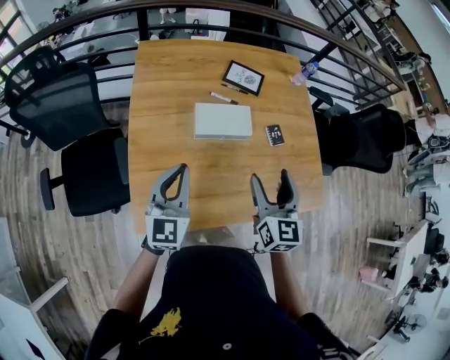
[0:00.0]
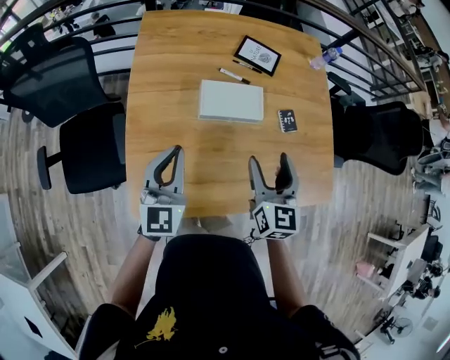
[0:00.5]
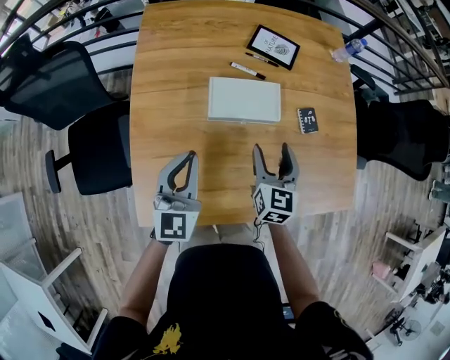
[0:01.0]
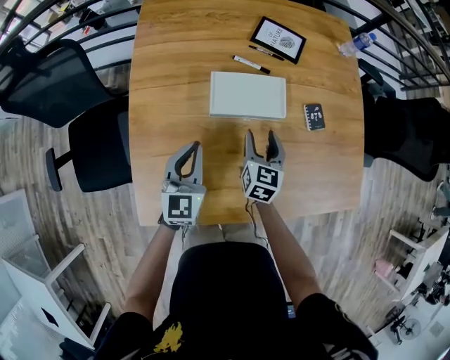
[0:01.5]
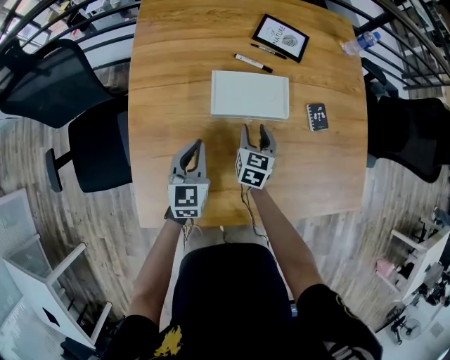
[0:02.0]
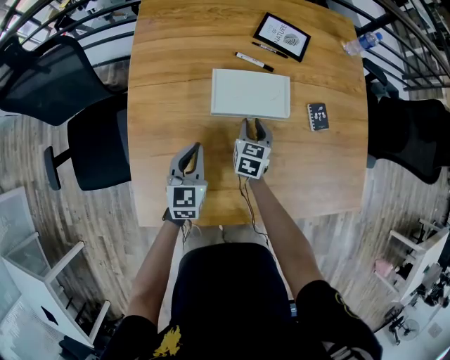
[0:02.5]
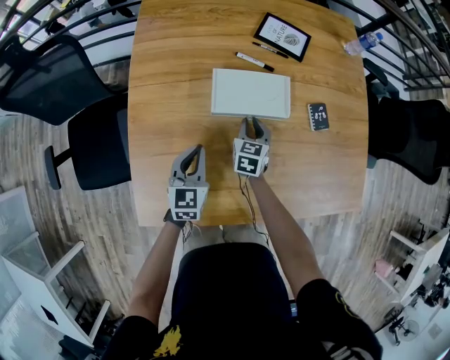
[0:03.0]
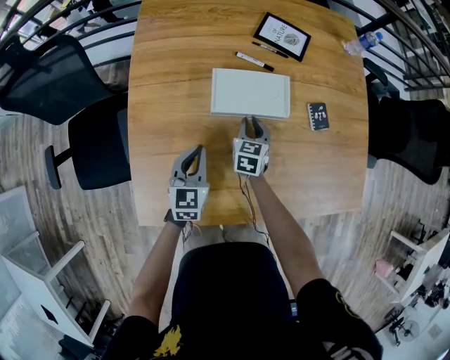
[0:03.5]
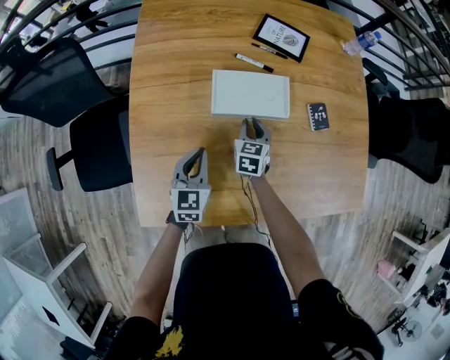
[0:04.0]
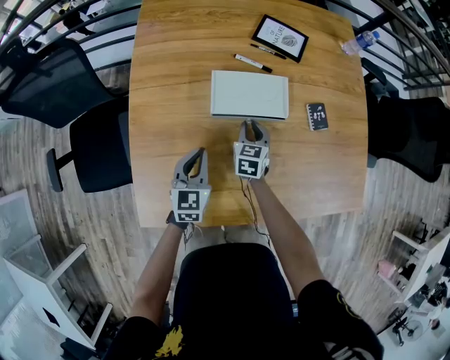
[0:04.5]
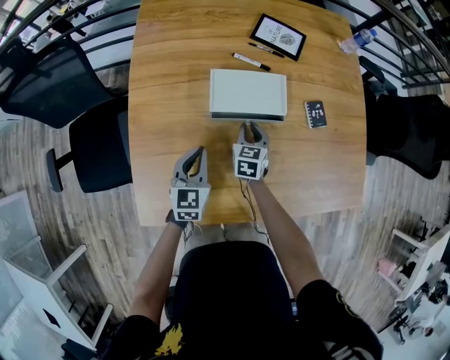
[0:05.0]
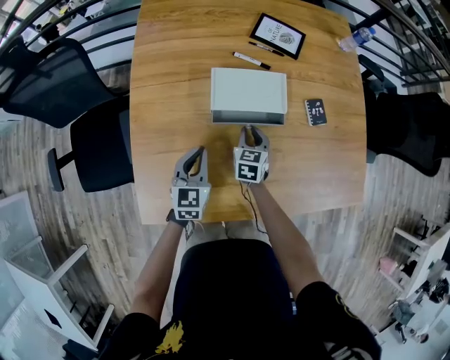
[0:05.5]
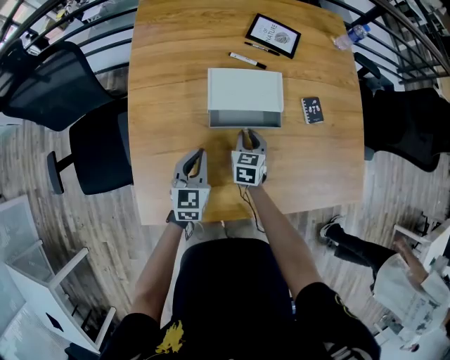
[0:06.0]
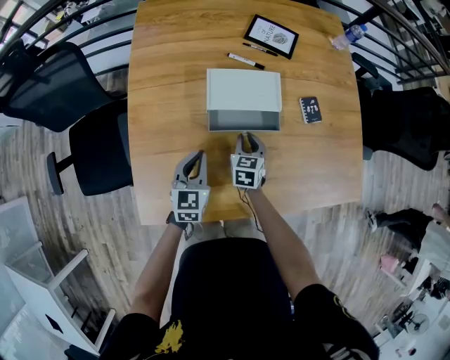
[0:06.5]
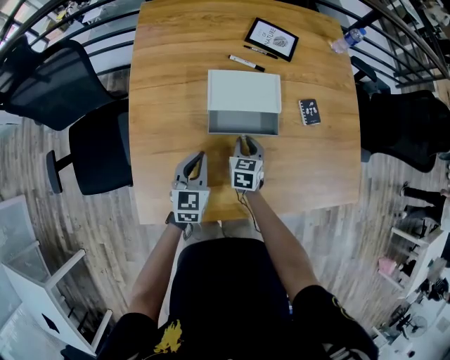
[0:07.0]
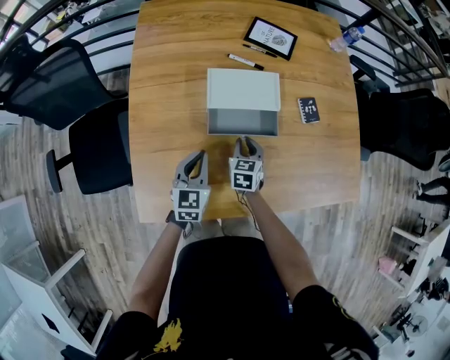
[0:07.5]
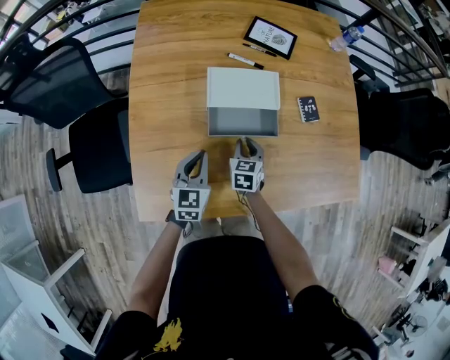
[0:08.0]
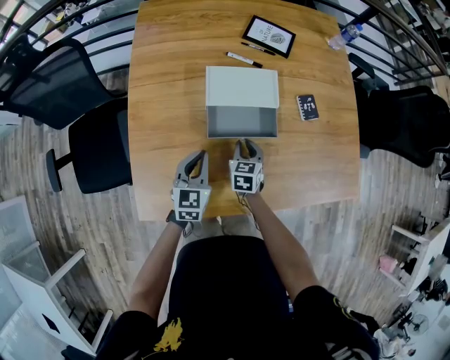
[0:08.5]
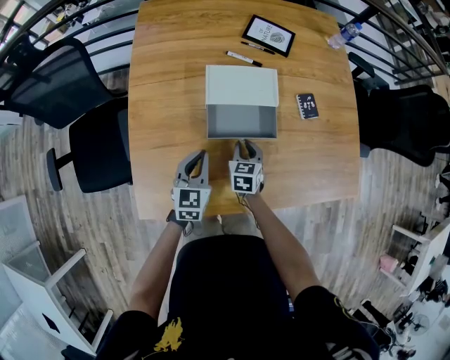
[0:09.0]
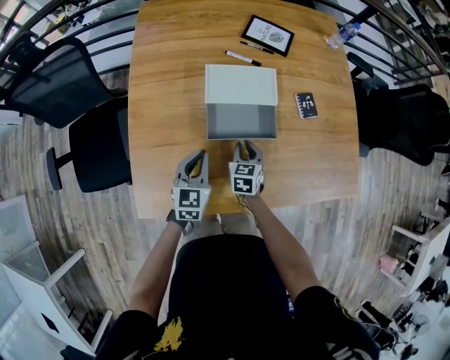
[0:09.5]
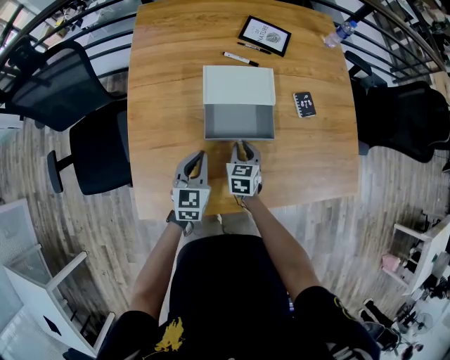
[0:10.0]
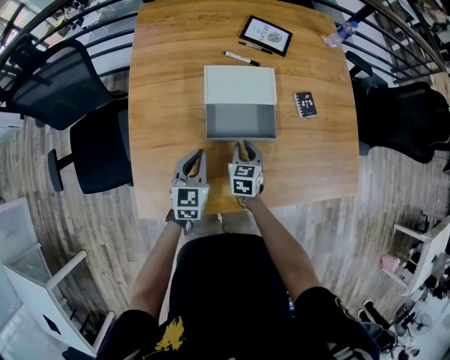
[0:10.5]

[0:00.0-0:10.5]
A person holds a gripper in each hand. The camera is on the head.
0:00.0 to 0:02.0: The grippers both shift downward and forward by roughly 30 cm. The right gripper turns by roughly 20 degrees, and closes.
0:02.0 to 0:04.0: The grippers move only a little.
0:04.0 to 0:06.5: The right gripper heads backward, covering roughly 5 cm.
0:06.5 to 0:10.5: The grippers make only small movements.

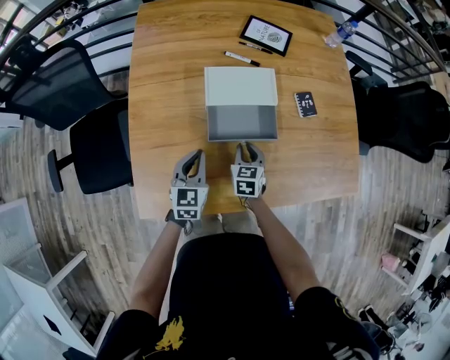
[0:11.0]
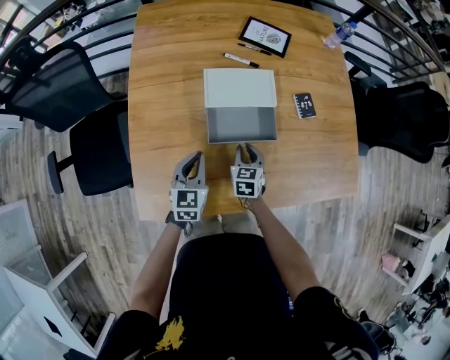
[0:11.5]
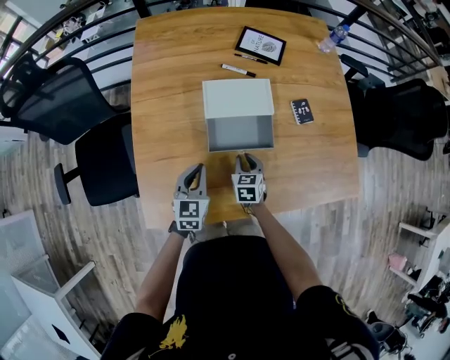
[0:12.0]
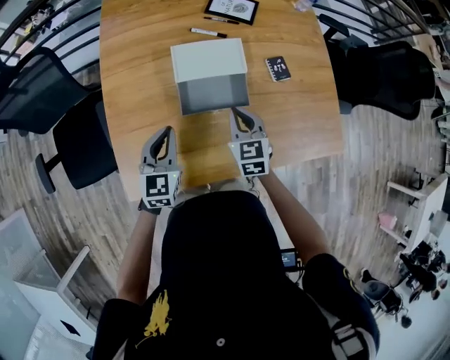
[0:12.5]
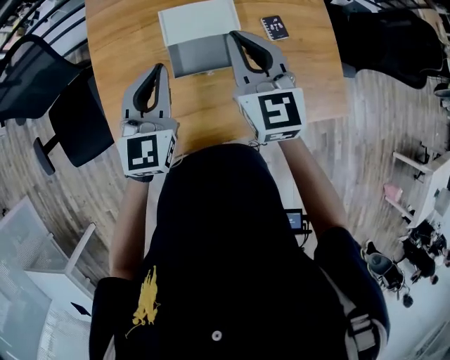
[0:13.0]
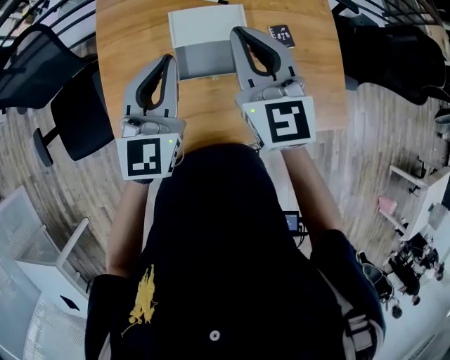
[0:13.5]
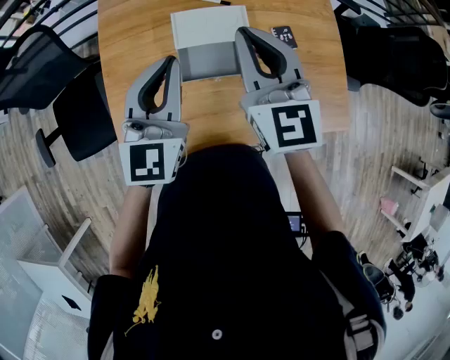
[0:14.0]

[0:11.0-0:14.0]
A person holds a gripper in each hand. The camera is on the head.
0:11.0 to 0:12.5: The right gripper shifts roughly 15 cm upward, while the left gripper shifts some 10 cm upward.
0:12.5 to 0:14.0: Both grippers move upward, approximately 20 cm. The left gripper rotates approximately 20 degrees. The right gripper rotates about 30 degrees.

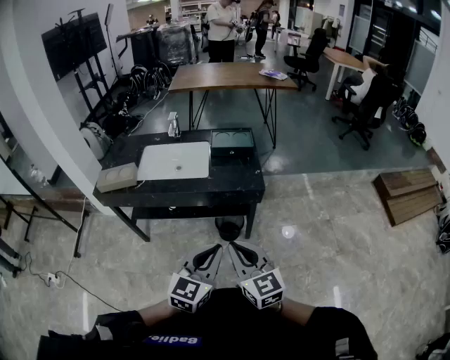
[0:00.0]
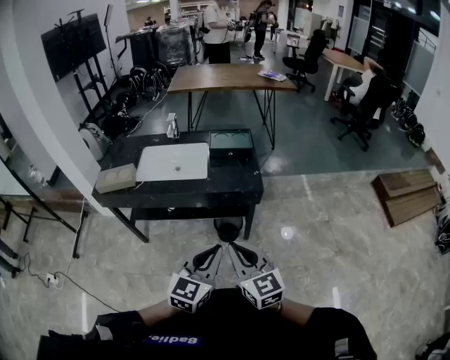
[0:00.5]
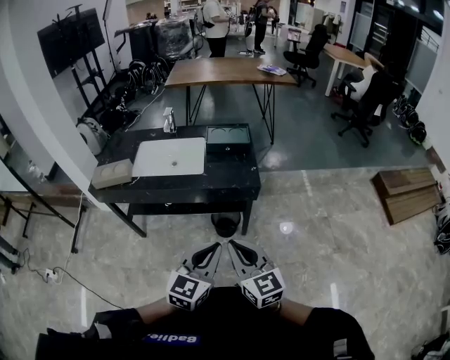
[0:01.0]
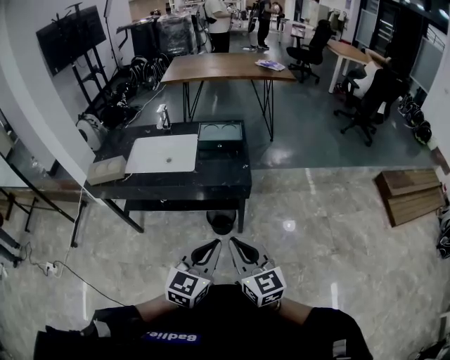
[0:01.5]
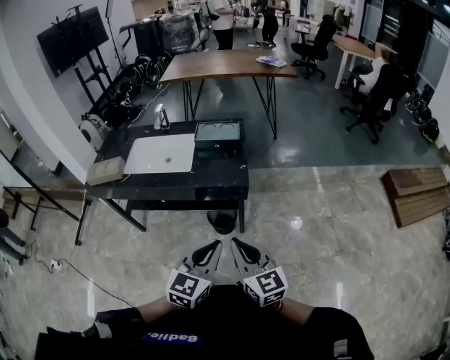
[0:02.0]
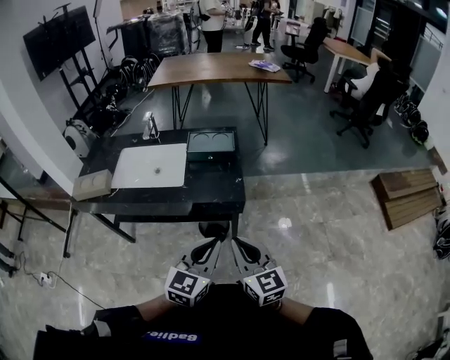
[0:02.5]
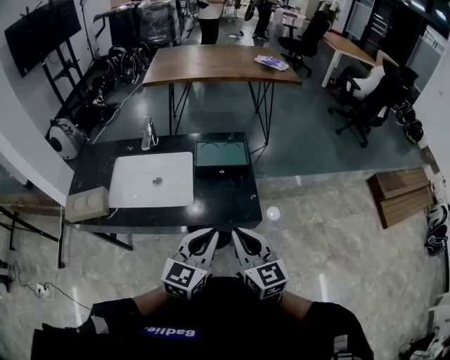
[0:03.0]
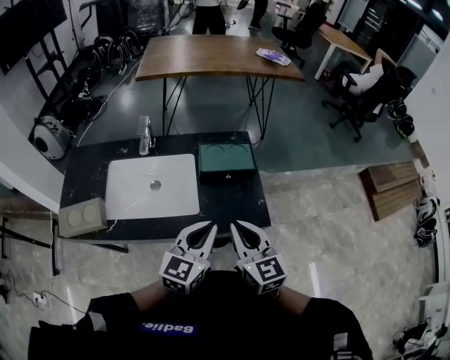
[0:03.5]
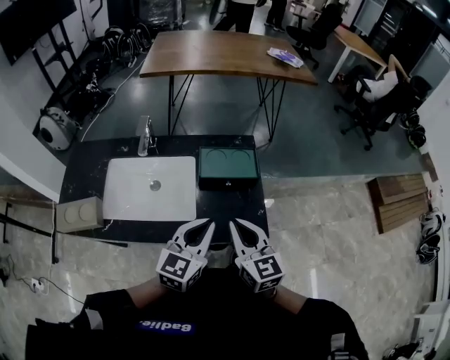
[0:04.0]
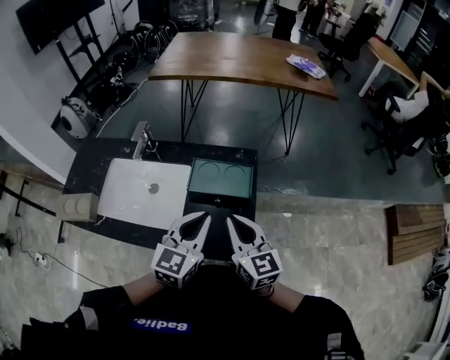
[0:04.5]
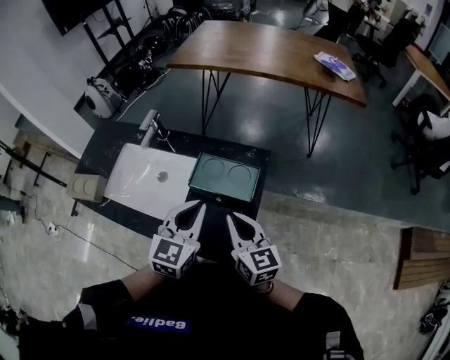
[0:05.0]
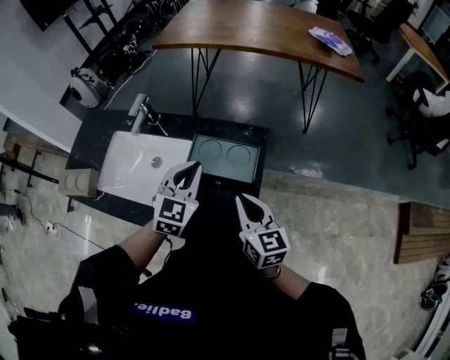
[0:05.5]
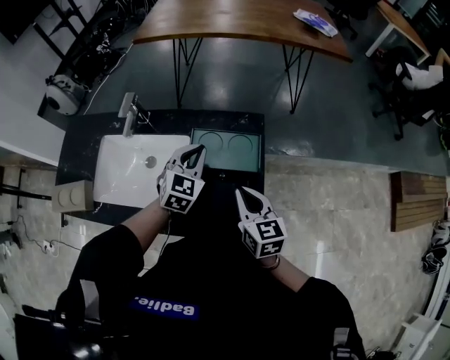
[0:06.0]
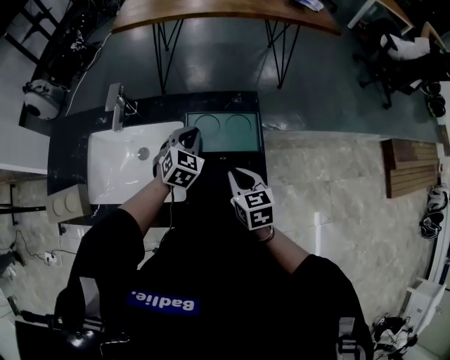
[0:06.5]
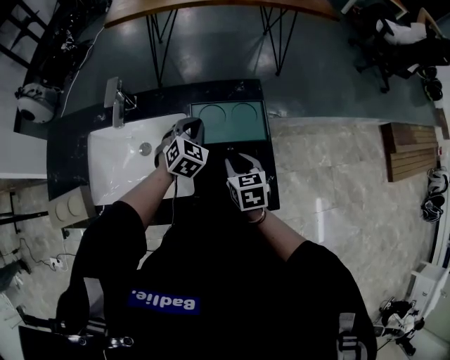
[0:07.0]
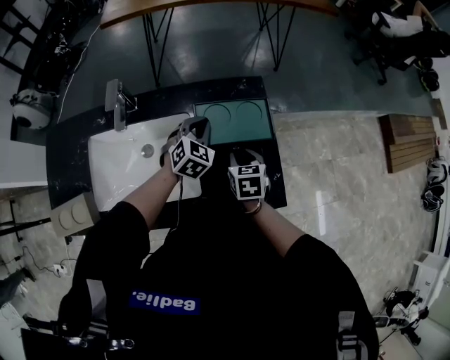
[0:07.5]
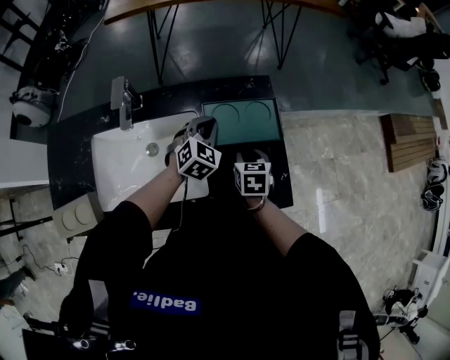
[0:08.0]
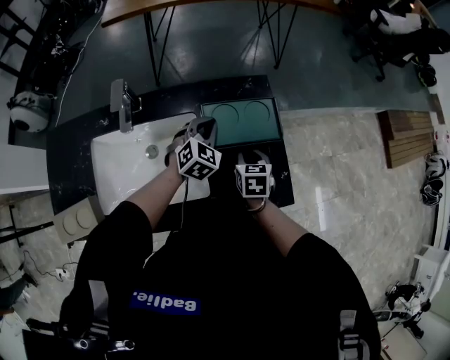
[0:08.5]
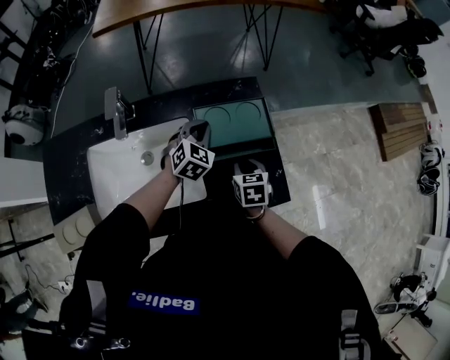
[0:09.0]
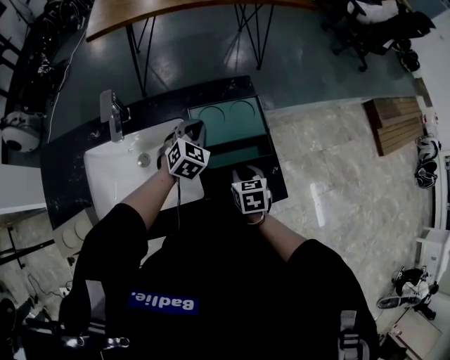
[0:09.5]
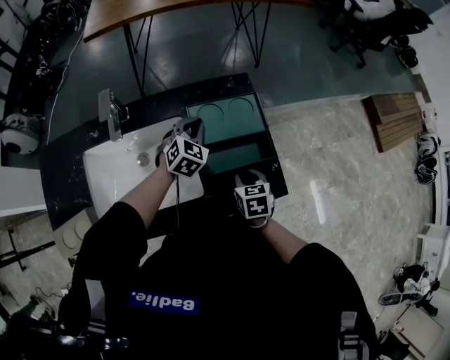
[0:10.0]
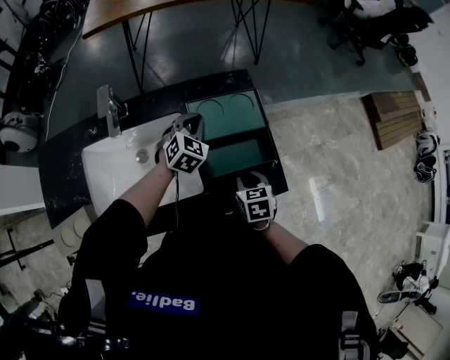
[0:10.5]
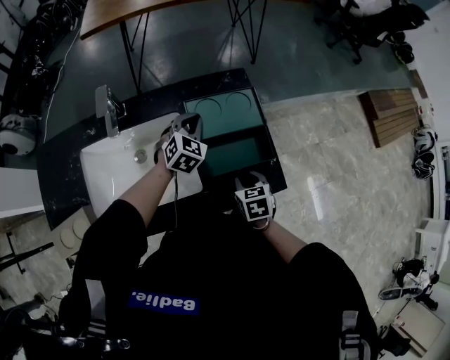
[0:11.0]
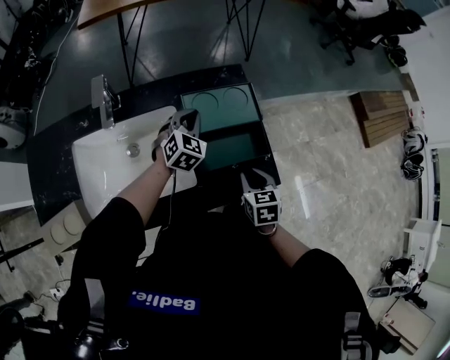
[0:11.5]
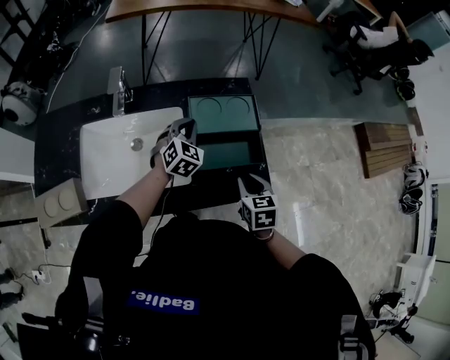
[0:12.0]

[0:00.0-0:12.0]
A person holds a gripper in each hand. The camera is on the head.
0:00.0 to 0:02.0: The two grippers go roughly 15 cm to the right.
0:02.0 to 0:04.0: The two grippers go approximately 40 cm forward and to the left.
0:04.0 to 0:06.0: The left gripper heads forward, covering approximately 25 cm, and rotates roughly 30 degrees. Meanwhile the right gripper travels forward, to the right and downward by some 20 cm.
0:06.0 to 0:08.0: The right gripper shifts approximately 15 cm downward, turns by approximately 30 degrees, and opens, while the left gripper travels downward by some 10 cm, and turns by about 20 degrees.
0:08.0 to 0:10.0: The right gripper is displaced backward by about 10 cm.
0:10.0 to 0:12.0: The right gripper is displaced upward by about 5 cm.

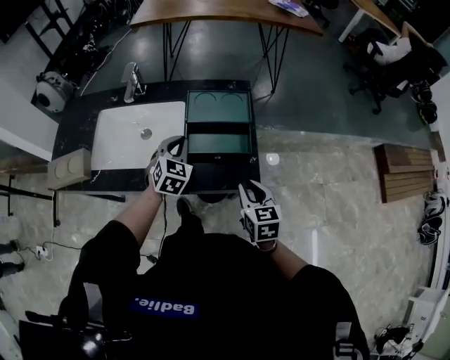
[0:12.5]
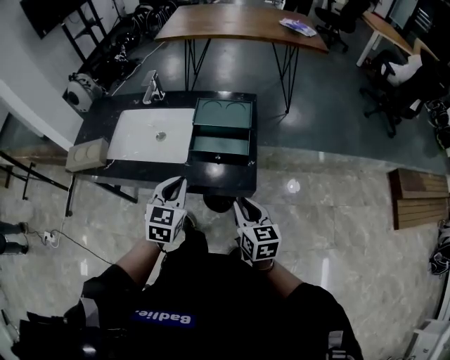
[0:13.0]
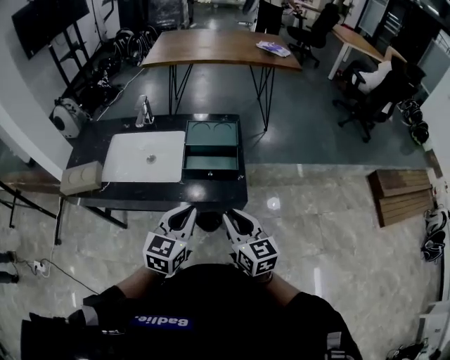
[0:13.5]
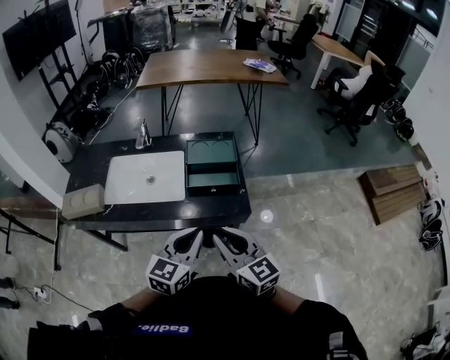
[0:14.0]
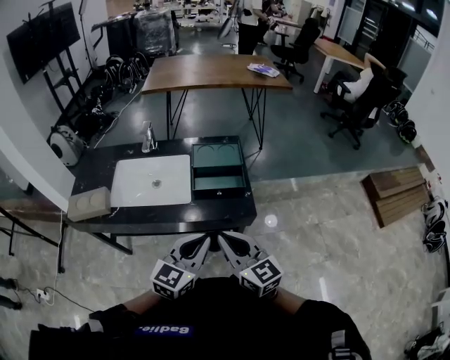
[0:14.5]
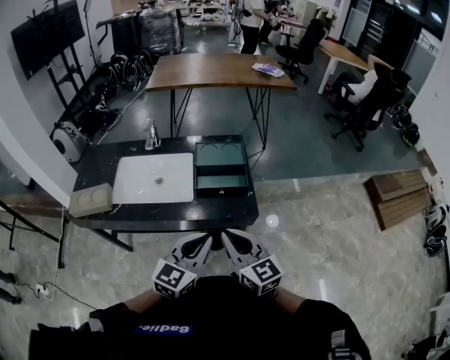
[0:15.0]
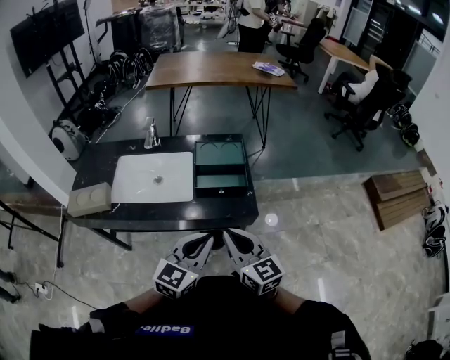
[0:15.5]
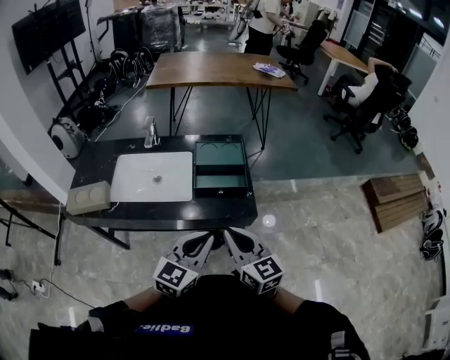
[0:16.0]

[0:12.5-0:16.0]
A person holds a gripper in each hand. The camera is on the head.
0:12.5 to 0:14.5: The right gripper shifts about 25 cm upward, backward and to the left, and swivels roughly 30 degrees; the left gripper moves backward and upward, some 35 cm, and turns by approximately 40 degrees.
0:14.5 to 0:16.0: The grippers make only small movements.
